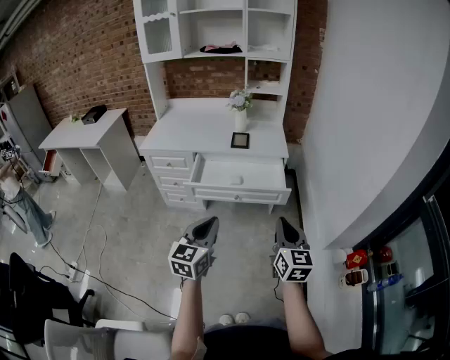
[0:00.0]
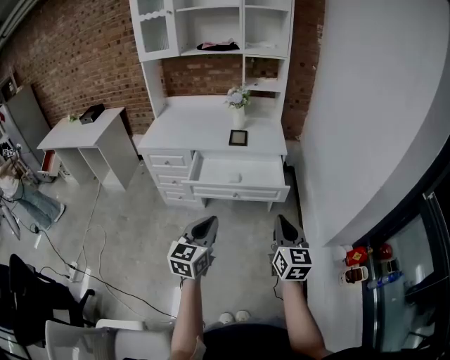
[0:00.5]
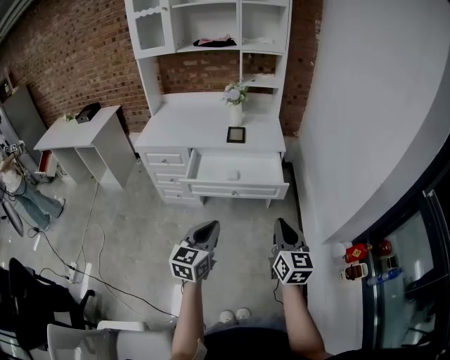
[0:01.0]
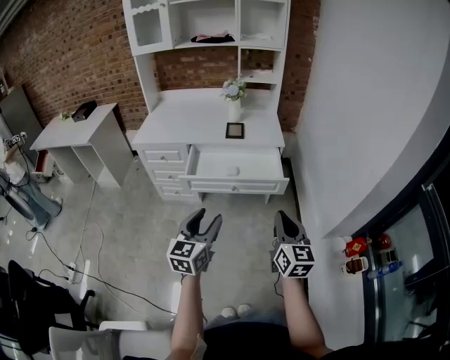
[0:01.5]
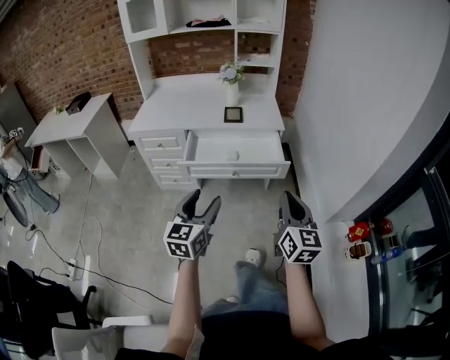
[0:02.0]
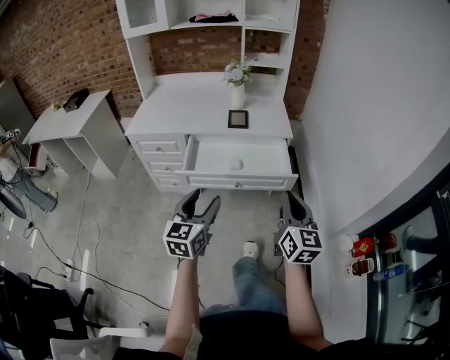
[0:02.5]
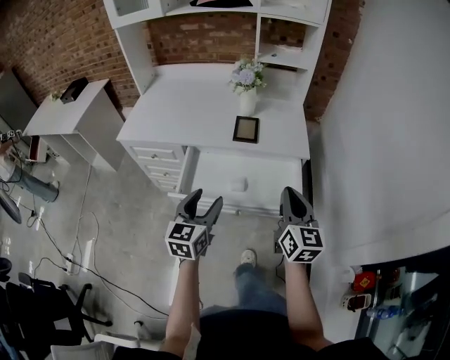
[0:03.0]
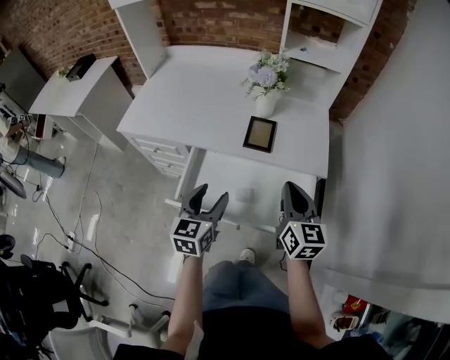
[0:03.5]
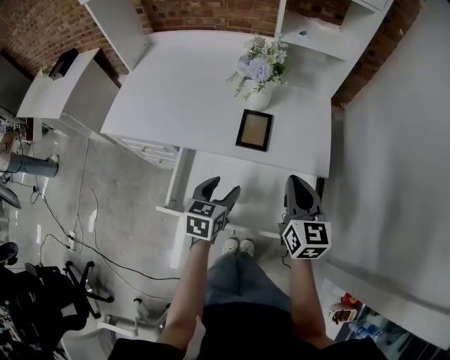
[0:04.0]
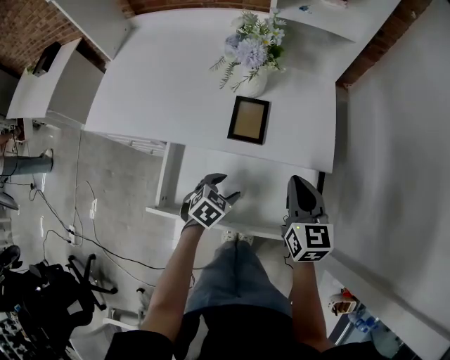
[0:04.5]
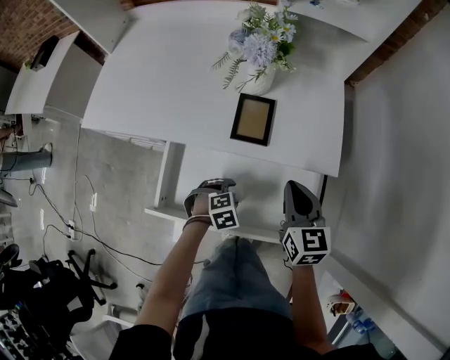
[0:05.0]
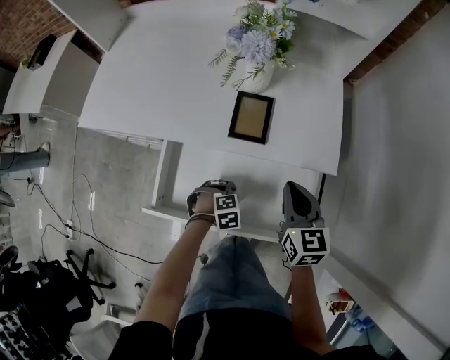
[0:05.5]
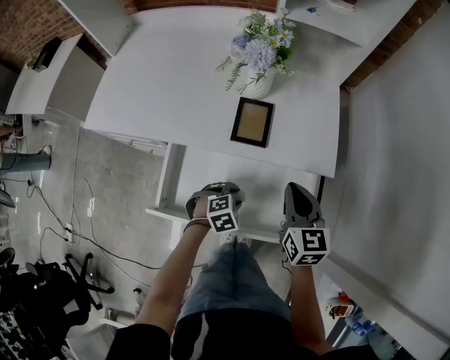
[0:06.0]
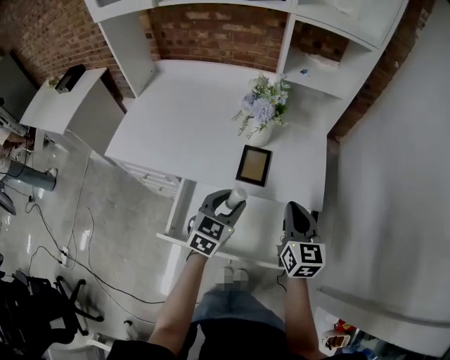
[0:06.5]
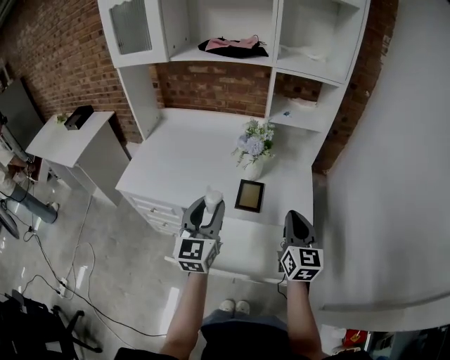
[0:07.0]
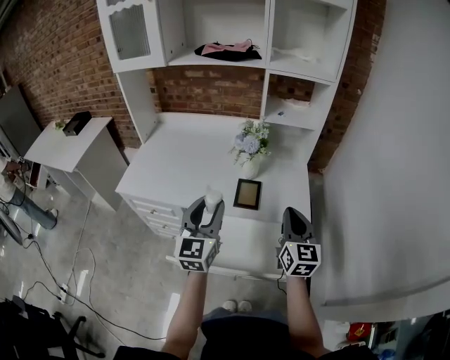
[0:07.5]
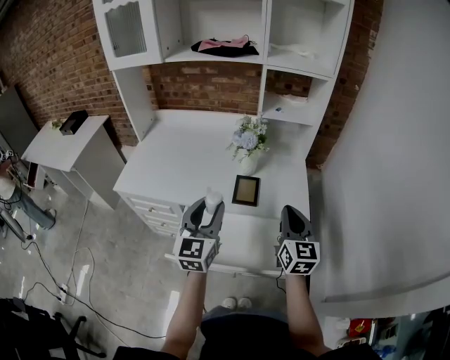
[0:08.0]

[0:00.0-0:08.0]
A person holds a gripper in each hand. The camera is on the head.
0:00.0 to 0:02.0: The left gripper opens.
0:02.0 to 0:04.0: The two grippers travel together, forward, approximately 50 cm. The left gripper changes its angle by some 30 degrees.
0:04.0 to 0:06.0: The right gripper moves downward, some 10 cm. The left gripper travels downward by approximately 15 cm, and points its fingers approximately 30 degrees further downward.
0:06.0 to 0:08.0: The left gripper heads upward, covering roughly 35 cm, and tips its fingers upward by roughly 70 degrees, while the right gripper shifts roughly 15 cm upward, and turns by some 20 degrees.

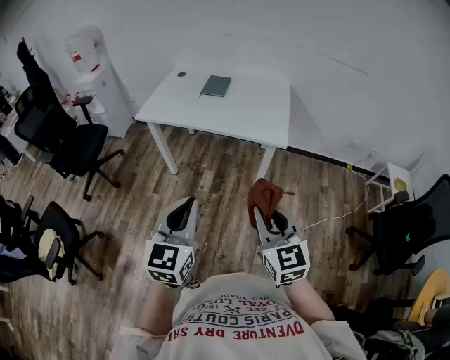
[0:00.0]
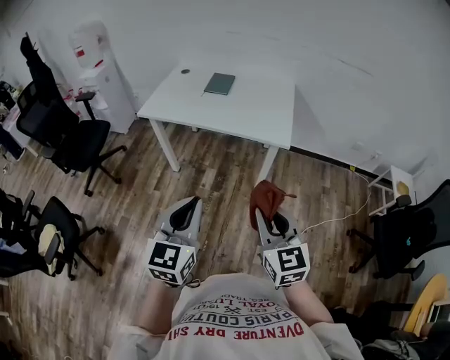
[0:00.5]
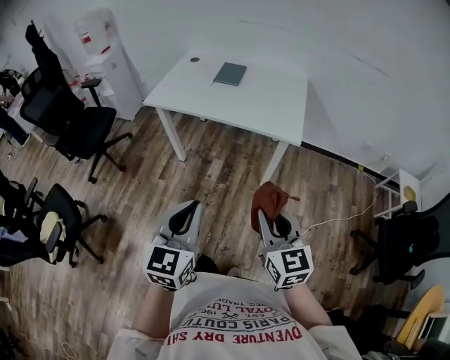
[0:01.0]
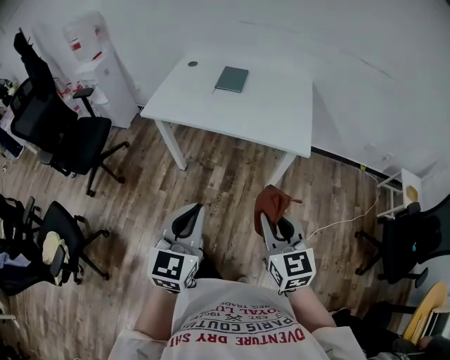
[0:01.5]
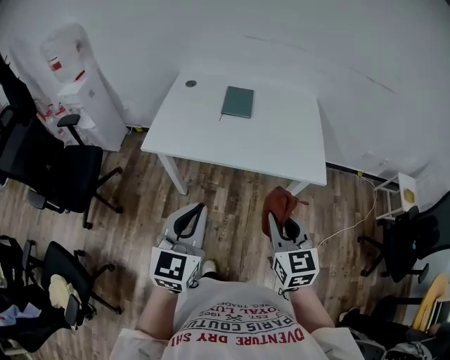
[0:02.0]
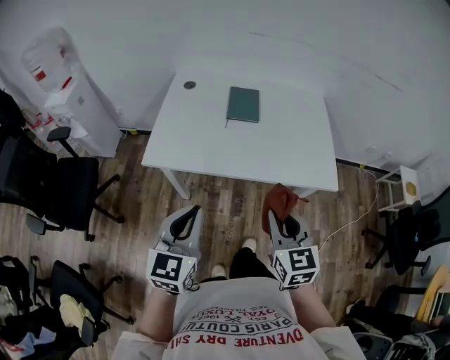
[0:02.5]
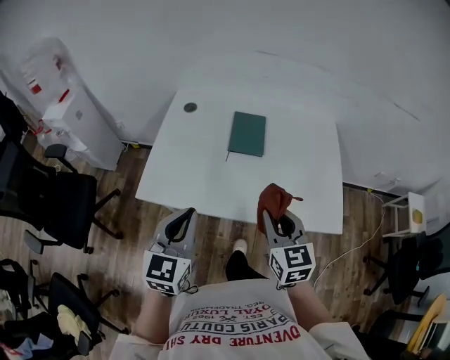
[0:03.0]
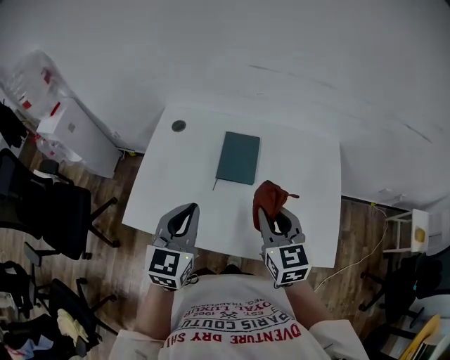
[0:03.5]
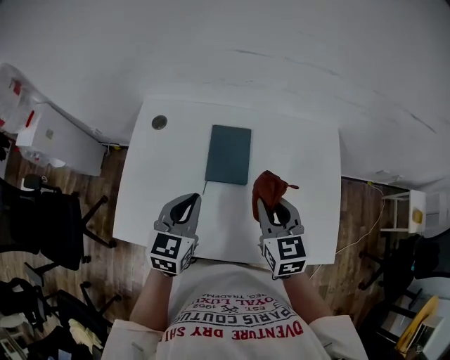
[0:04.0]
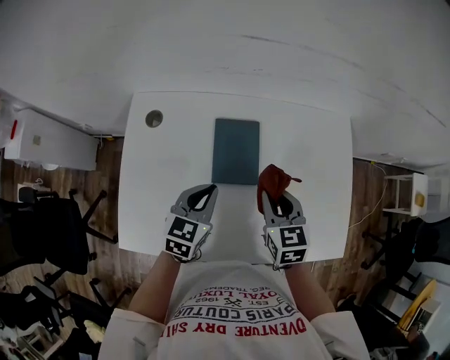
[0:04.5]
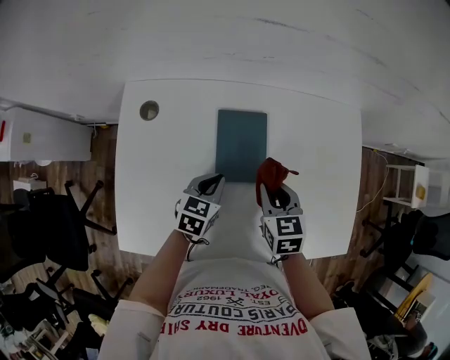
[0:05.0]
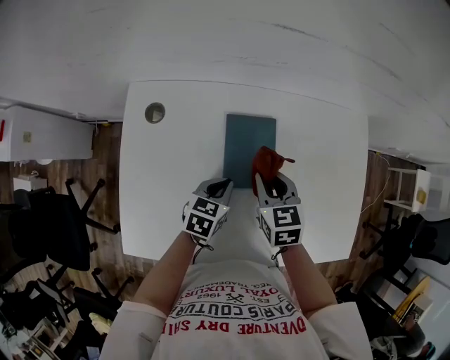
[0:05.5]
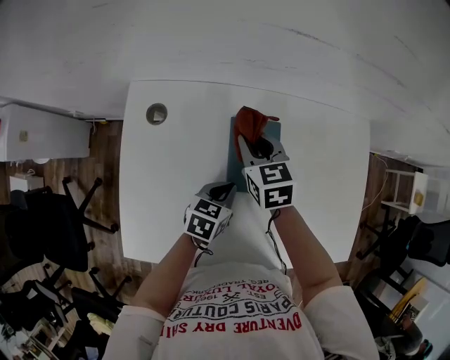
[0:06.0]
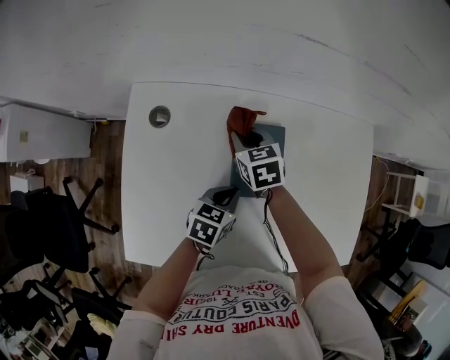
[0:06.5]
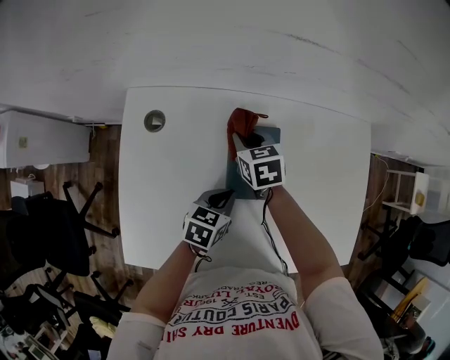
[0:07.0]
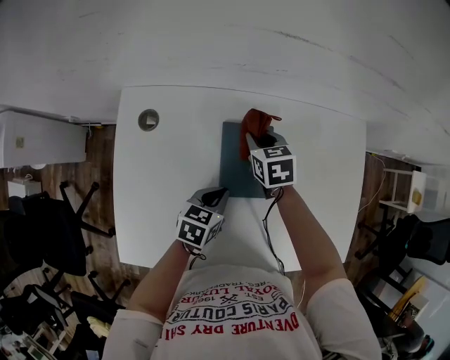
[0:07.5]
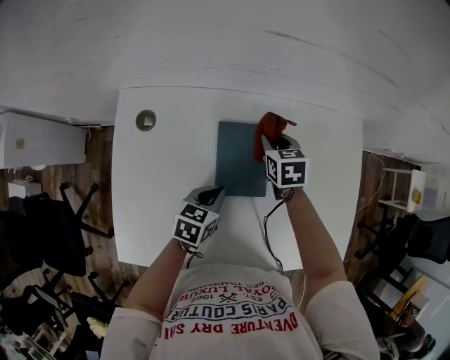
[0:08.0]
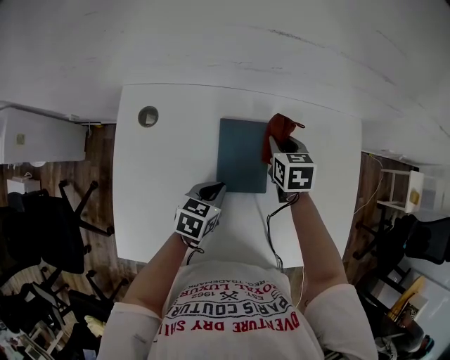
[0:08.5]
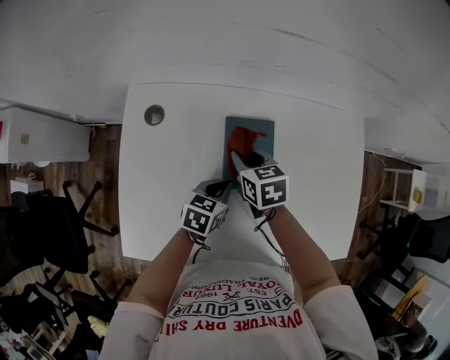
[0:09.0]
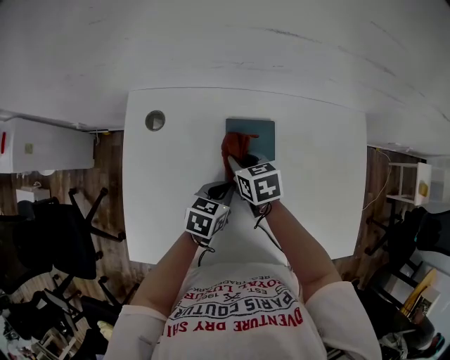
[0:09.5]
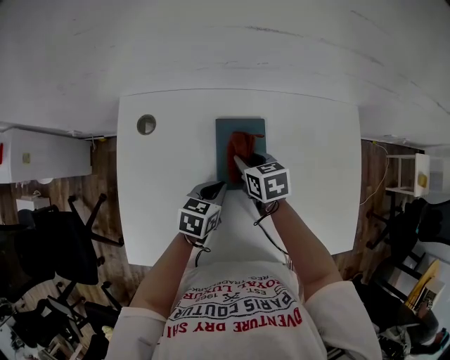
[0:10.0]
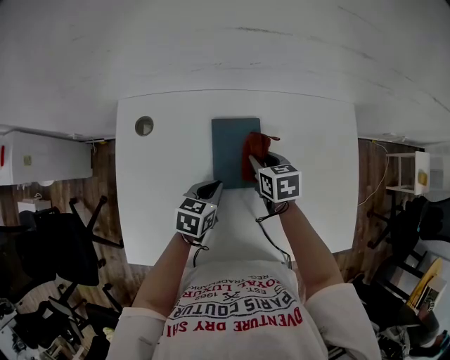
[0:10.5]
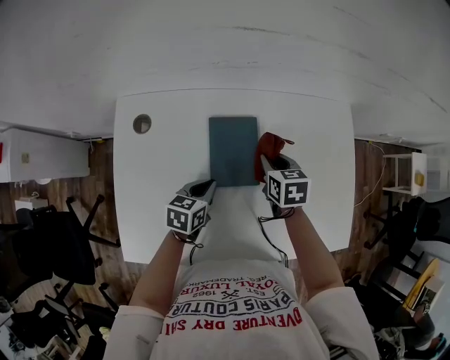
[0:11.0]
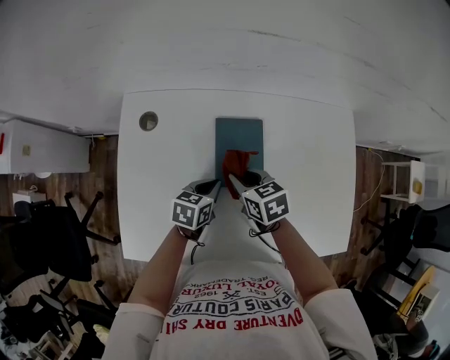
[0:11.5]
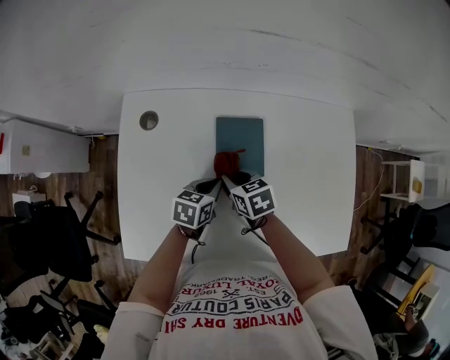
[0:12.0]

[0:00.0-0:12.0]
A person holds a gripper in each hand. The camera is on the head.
0:00.0 to 0:02.0: Both grippers move forward and to the left, about 30 cm.
0:02.0 to 0:04.0: The pair of grippers is taken forward, about 50 cm.
0:04.0 to 0:06.0: The left gripper shifts some 20 cm downward and forward, and rotates roughly 30 degrees, while the right gripper is displaced forward, to the left and downward by about 30 cm.
0:06.0 to 0:08.0: The right gripper shifts approximately 10 cm to the right and downward.
0:08.0 to 0:10.0: The right gripper shifts approximately 10 cm backward and to the left.
0:10.0 to 0:12.0: The right gripper shifts approximately 5 cm backward, and travels to the right and back again, about 10 cm each way.

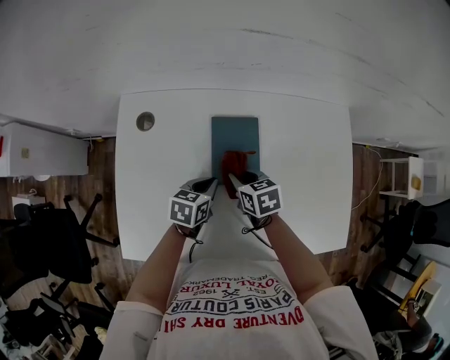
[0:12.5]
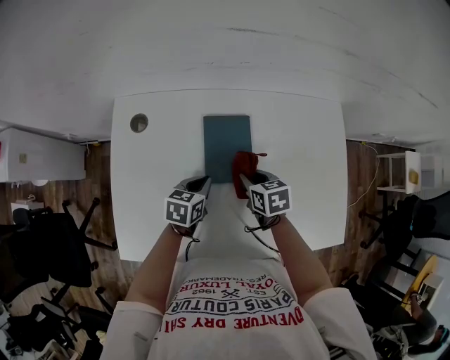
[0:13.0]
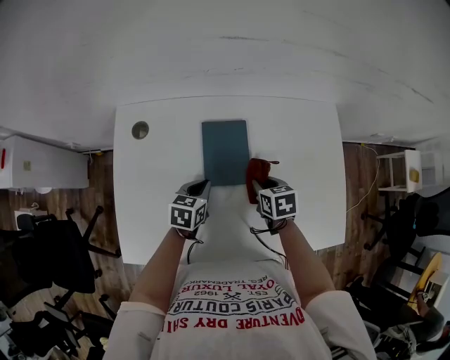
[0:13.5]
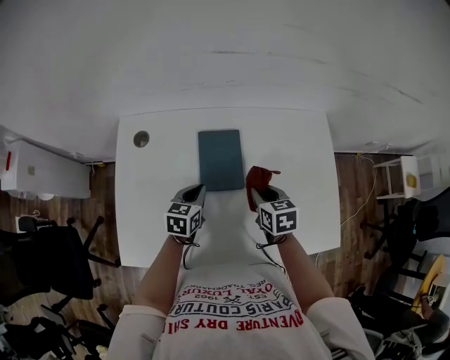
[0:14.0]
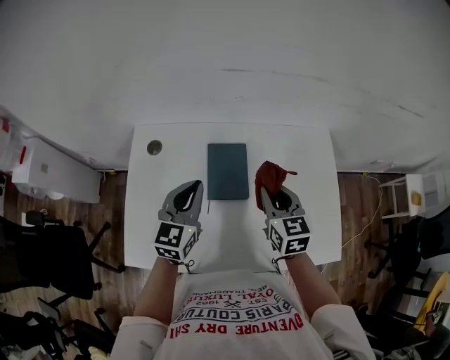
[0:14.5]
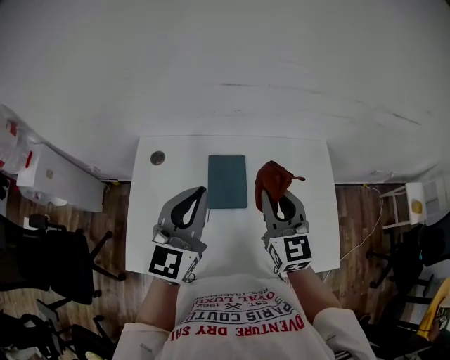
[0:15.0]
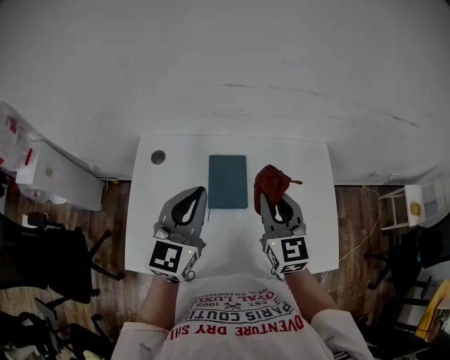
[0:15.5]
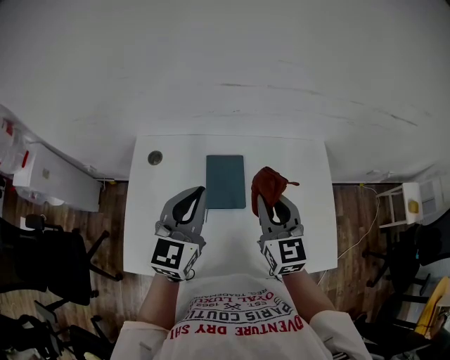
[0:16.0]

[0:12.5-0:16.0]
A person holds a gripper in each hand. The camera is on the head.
0:12.5 to 0:14.5: The right gripper shifts about 20 cm upward and to the right, and rotates roughly 30 degrees; the left gripper heads upward, covering about 20 cm, and rotates approximately 40 degrees.
0:14.5 to 0:16.0: Both grippers move upward, approximately 10 cm.

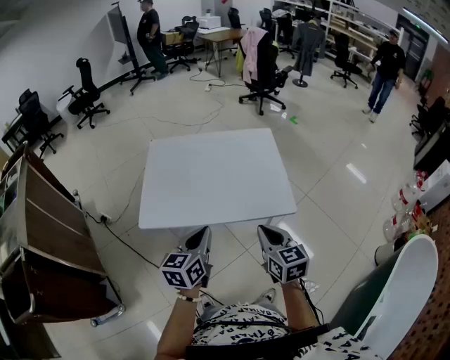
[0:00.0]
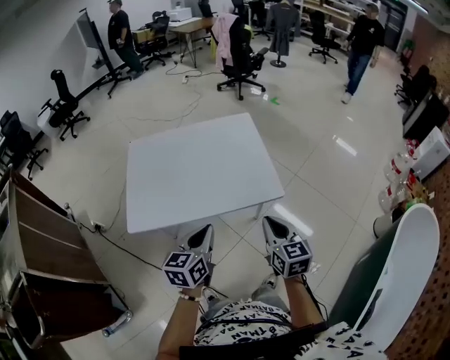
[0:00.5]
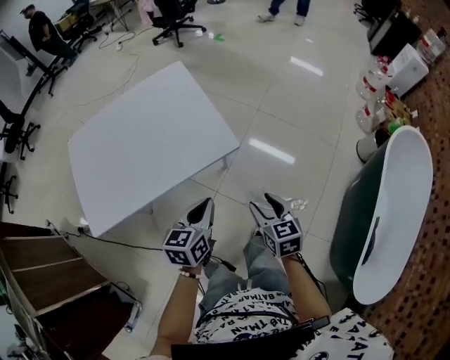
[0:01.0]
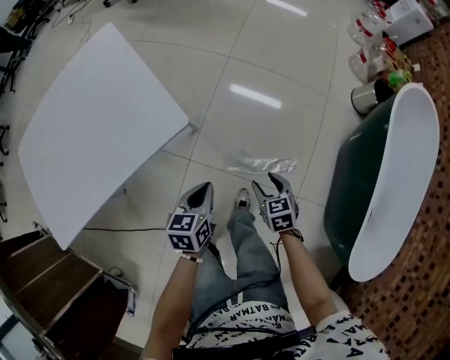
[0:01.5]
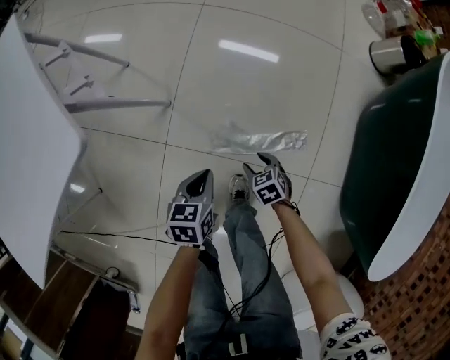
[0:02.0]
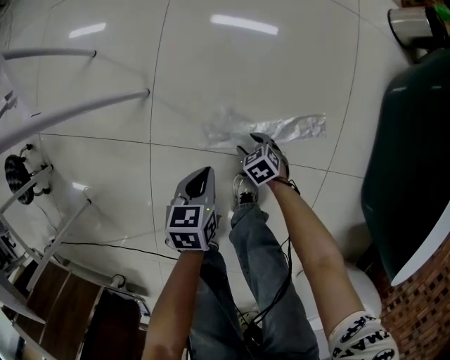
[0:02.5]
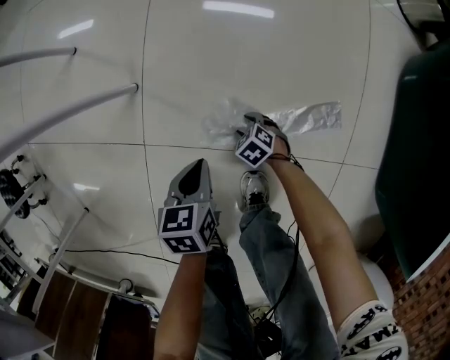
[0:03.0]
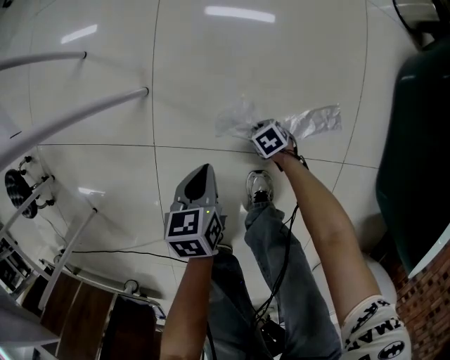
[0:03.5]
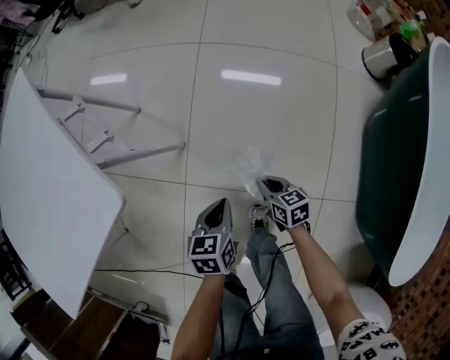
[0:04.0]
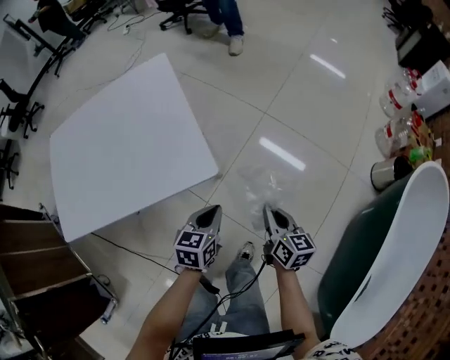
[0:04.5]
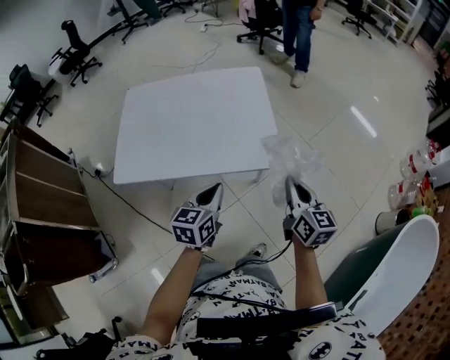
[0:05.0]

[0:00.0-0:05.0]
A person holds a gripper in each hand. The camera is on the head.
0:00.0 to 0:02.5: Both grippers move downward, roughly 80 cm. The left gripper points its fingers some 40 degrees further downward. Meanwhile the right gripper angles its fingers downward, by some 50 degrees, and opens.
0:02.5 to 0:05.0: The two grippers go some 70 cm upward. The left gripper angles its fingers upward, by about 30 degrees, while the right gripper tips its fingers upward by about 60 degrees, and closes.
